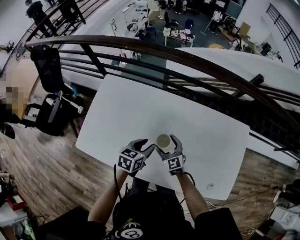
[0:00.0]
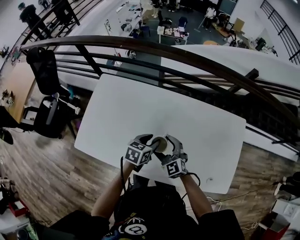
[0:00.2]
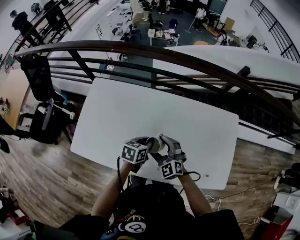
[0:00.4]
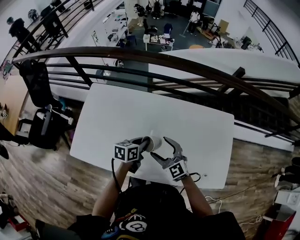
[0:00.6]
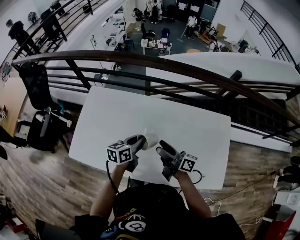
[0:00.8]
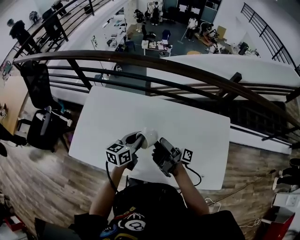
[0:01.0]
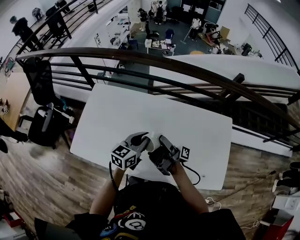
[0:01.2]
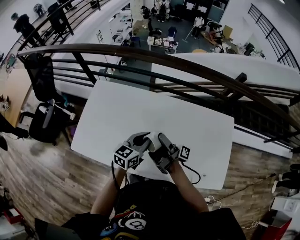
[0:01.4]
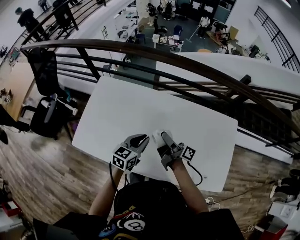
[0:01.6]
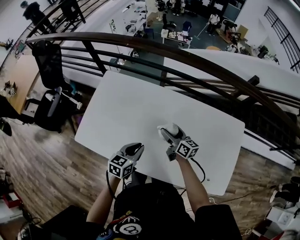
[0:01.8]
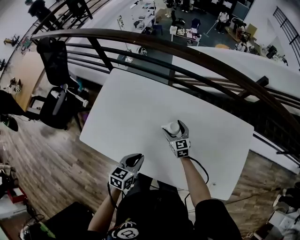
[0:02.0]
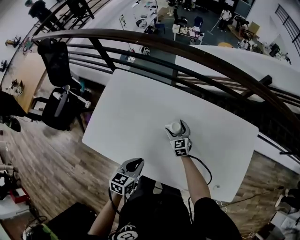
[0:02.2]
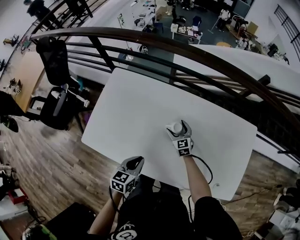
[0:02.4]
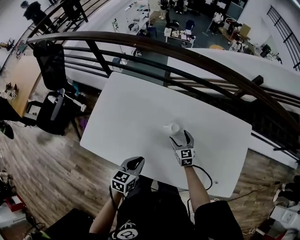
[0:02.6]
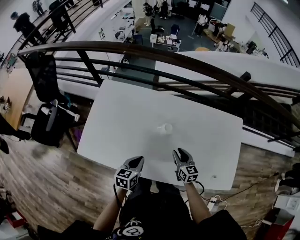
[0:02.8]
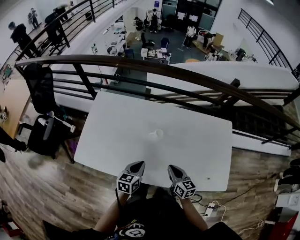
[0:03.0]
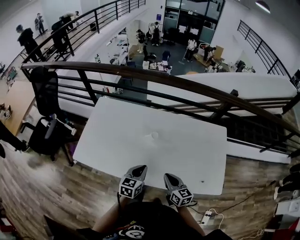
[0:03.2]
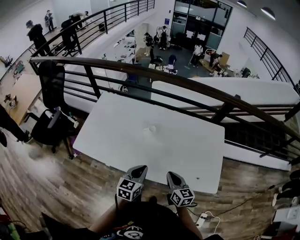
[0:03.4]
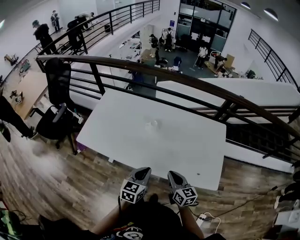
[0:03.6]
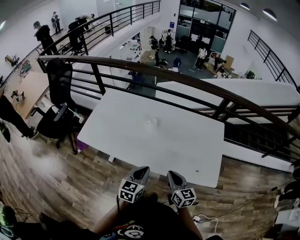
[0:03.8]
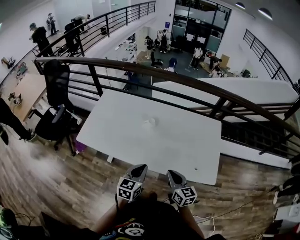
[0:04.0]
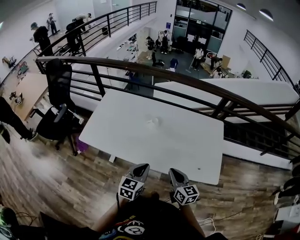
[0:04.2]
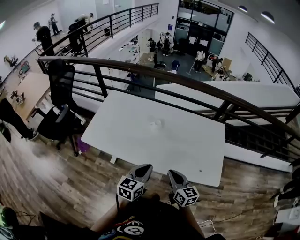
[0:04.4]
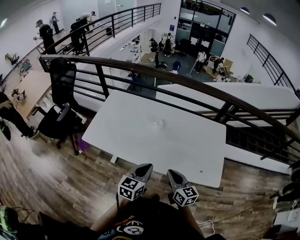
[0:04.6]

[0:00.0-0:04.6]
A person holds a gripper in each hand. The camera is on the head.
0.0 to 1.6 s: The right gripper moves upward, about 15 cm, and rotates around the line of its fingers by roughly 80 degrees, clockwise from behind; the left gripper moves upward, roughly 5 cm, and closes.
1.6 to 3.0 s: The left gripper travels backward and downward by some 10 cm, while the right gripper goes roughly 15 cm backward and downward, angles its fingers downward, by some 40 degrees, and closes.
3.0 to 4.6 s: The right gripper is displaced backward and upward by roughly 20 cm; the left gripper goes about 25 cm backward, upward and to the right.

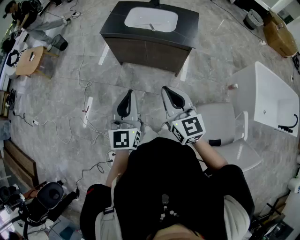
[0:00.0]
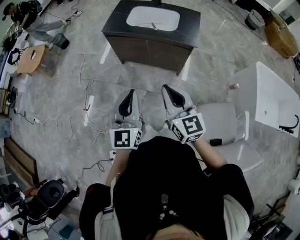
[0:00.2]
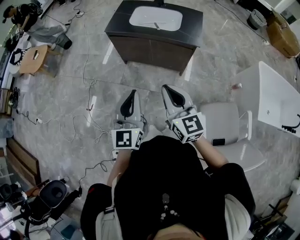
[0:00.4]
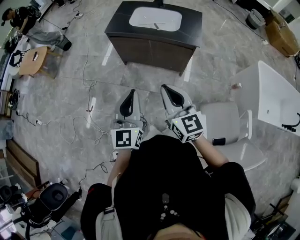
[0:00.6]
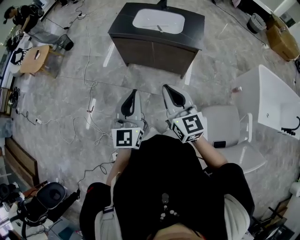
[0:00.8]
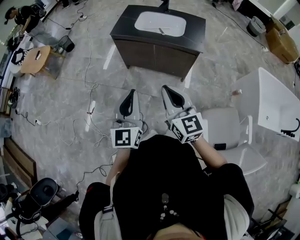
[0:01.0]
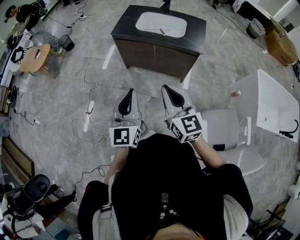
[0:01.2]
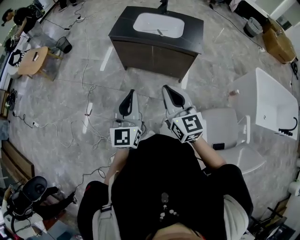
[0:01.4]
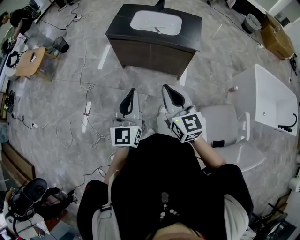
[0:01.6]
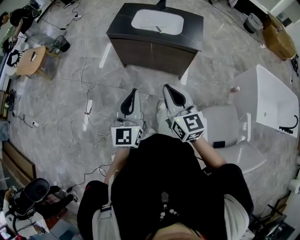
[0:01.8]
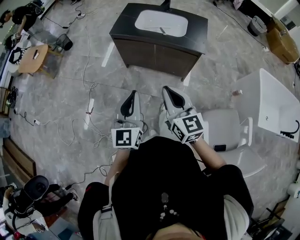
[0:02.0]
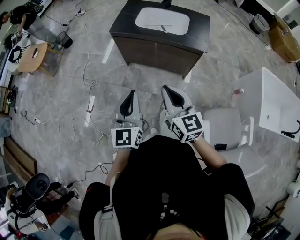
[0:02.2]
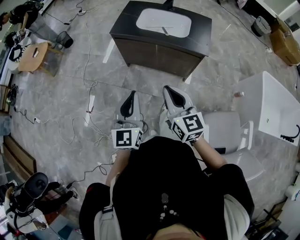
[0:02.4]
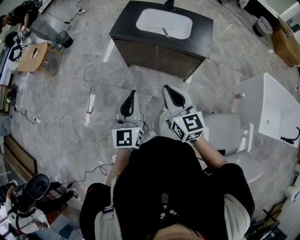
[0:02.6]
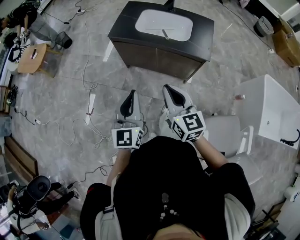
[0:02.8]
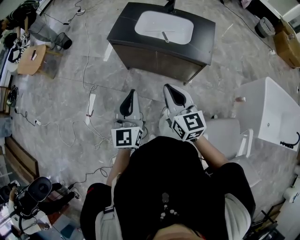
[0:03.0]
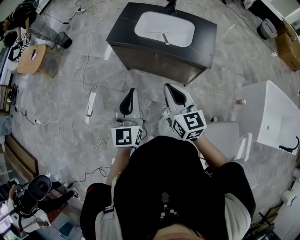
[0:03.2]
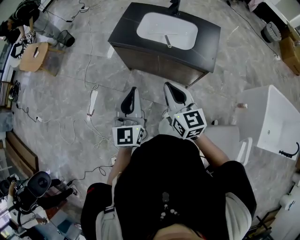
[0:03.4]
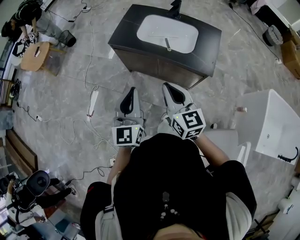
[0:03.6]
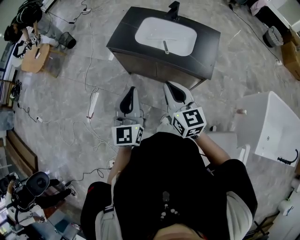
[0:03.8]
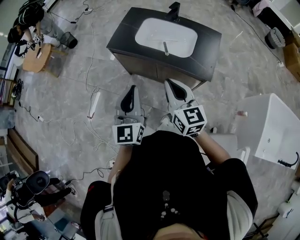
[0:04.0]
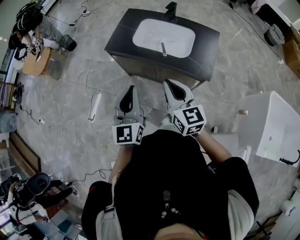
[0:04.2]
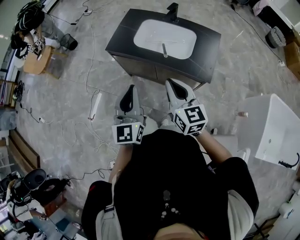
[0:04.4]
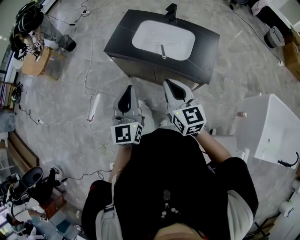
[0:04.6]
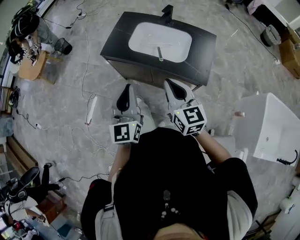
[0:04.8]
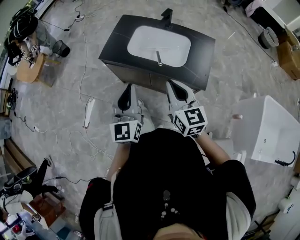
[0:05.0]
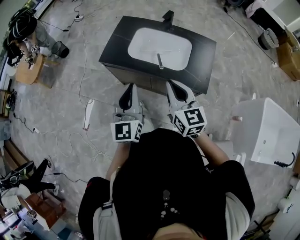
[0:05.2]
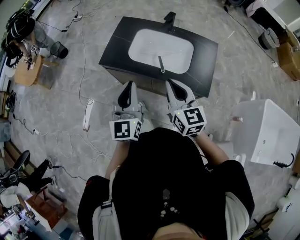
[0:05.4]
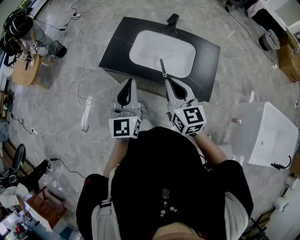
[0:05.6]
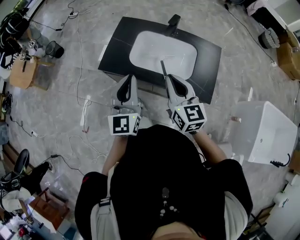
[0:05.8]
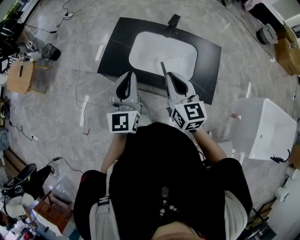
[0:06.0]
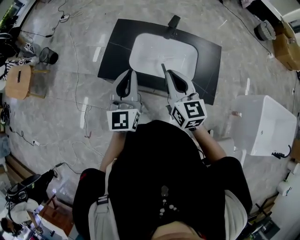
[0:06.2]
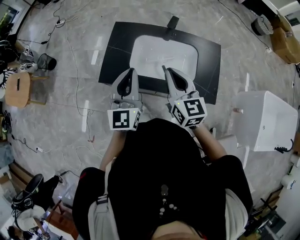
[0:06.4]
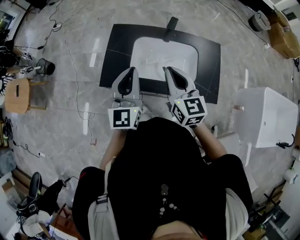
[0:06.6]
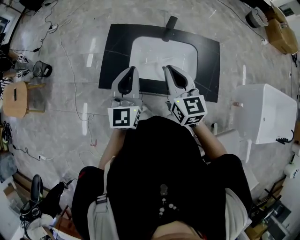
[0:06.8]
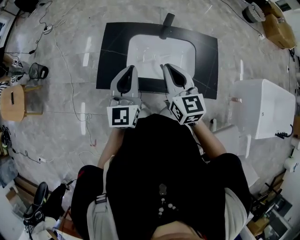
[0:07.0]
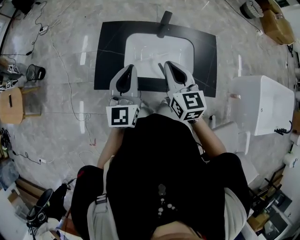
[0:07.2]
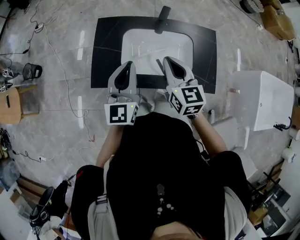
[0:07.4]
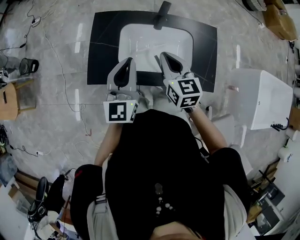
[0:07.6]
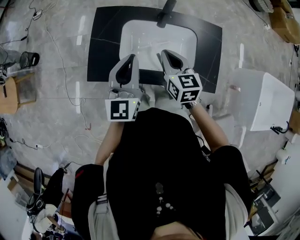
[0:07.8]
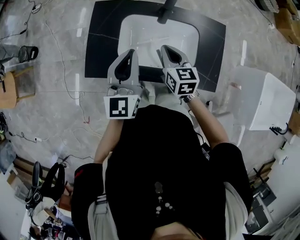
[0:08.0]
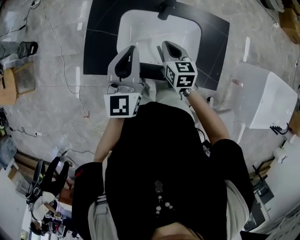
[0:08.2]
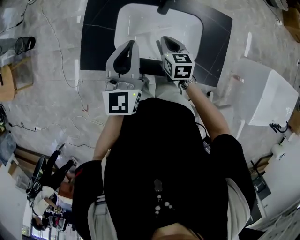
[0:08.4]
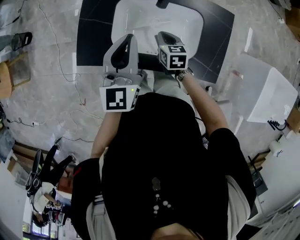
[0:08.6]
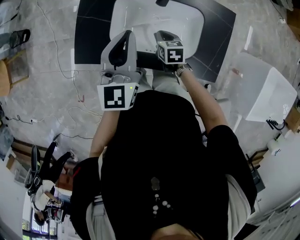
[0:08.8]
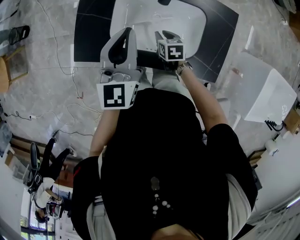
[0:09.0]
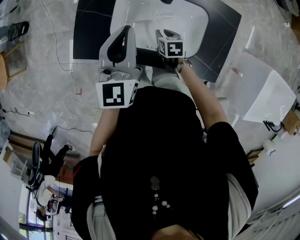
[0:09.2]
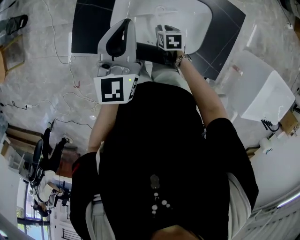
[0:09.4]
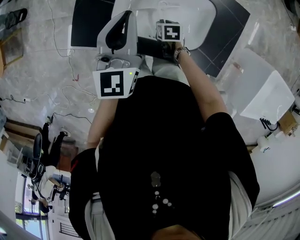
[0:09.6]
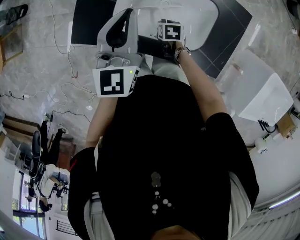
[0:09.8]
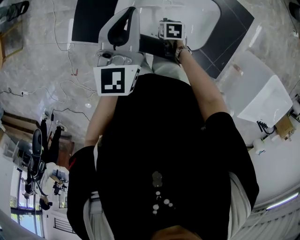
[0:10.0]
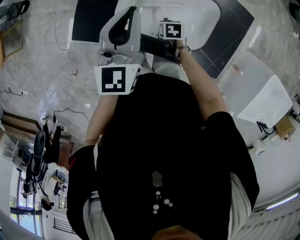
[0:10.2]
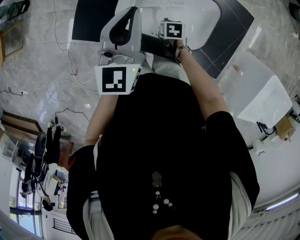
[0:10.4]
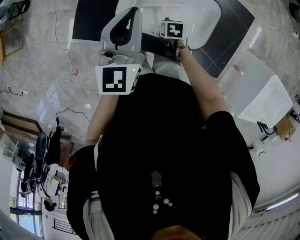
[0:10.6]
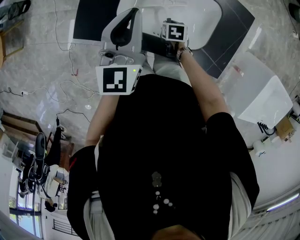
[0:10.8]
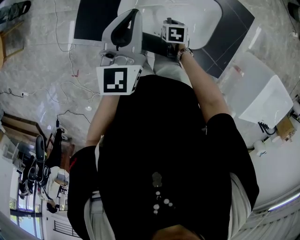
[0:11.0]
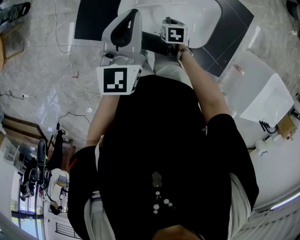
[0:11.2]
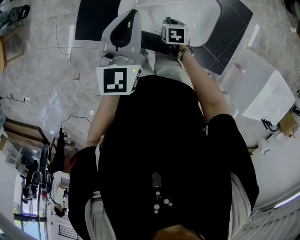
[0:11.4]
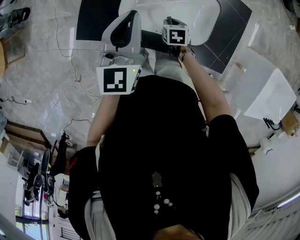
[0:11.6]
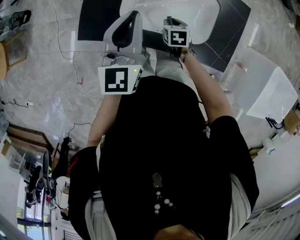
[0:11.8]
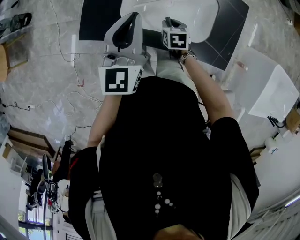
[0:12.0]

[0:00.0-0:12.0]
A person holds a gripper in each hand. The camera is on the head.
0.0 to 1.6 s: The grippers both shift to the left by about 5 cm.
1.6 to 3.0 s: The two grippers go some 15 cm forward.
3.0 to 4.4 s: Both grippers travel together forward and to the right, roughly 15 cm.
4.4 to 6.0 s: The two grippers go roughly 25 cm forward.
6.0 to 7.6 s: Both grippers travel together forward and downward, some 15 cm.
7.6 to 9.0 s: The right gripper is displaced downward by roughly 30 cm, tilts its fingers approximately 30 degrees downward, and opens up. The left gripper heads forward, covering roughly 5 cm.
9.0 to 10.4 s: The right gripper is displaced downward by about 10 cm.
10.4 to 12.0 s: The left gripper moves approximately 5 cm. The right gripper shifts about 10 cm upward.

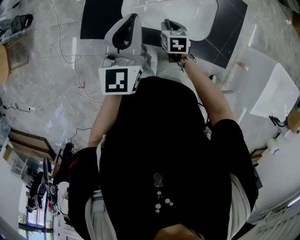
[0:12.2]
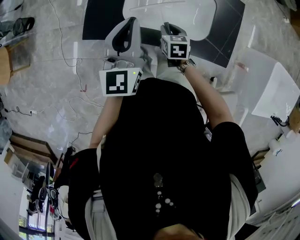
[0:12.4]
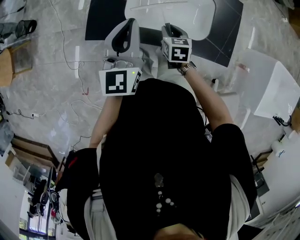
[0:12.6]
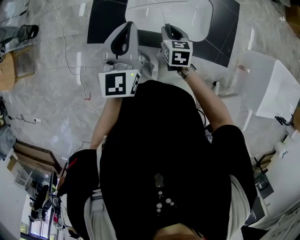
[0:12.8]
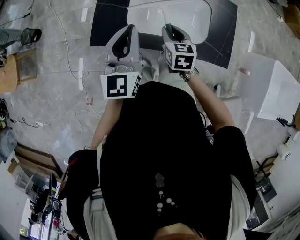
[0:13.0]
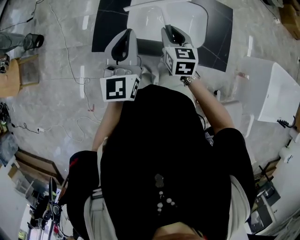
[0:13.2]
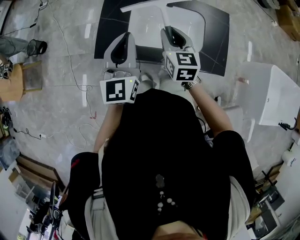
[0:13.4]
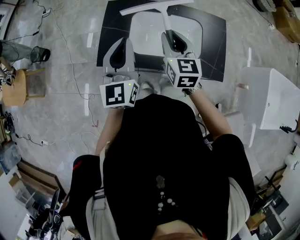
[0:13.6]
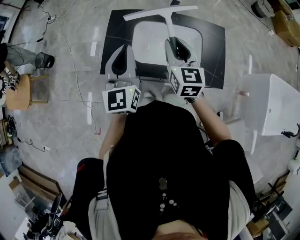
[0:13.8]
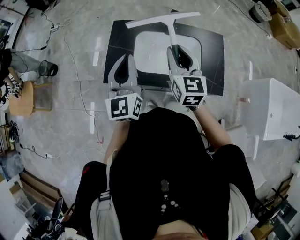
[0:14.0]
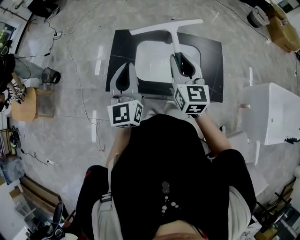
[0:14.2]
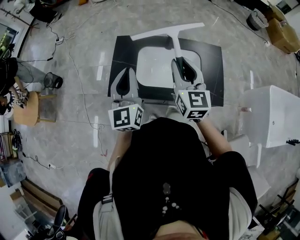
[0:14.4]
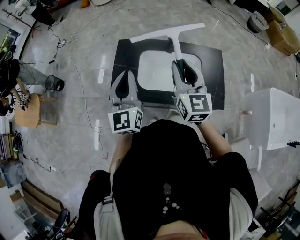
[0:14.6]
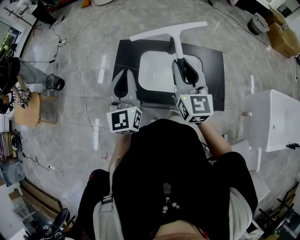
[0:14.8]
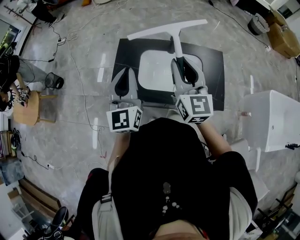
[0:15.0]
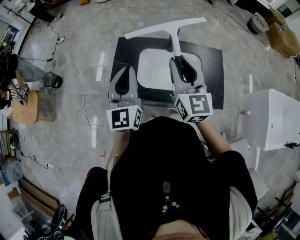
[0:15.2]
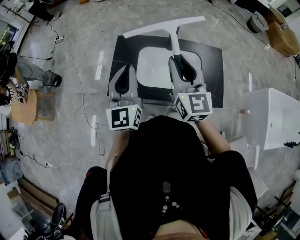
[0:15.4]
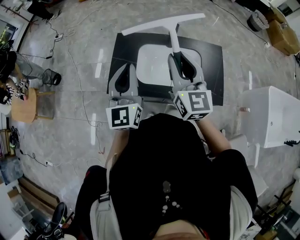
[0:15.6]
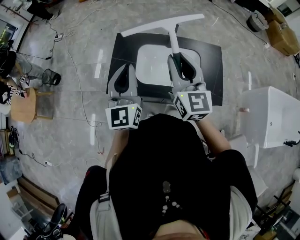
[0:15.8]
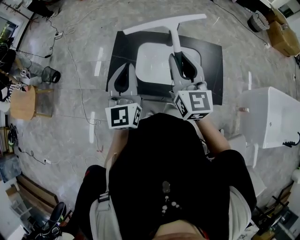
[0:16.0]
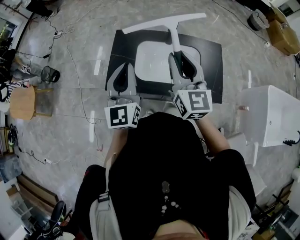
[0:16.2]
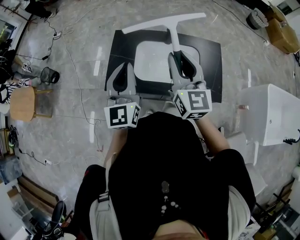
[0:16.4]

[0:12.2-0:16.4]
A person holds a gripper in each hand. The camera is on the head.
12.2 to 13.6 s: The right gripper heads upward, covering some 30 cm, and tilts its fingers roughly 40 degrees upward. The left gripper is displaced upward by about 10 cm.
13.6 to 15.0 s: The right gripper shifts some 15 cm upward. The left gripper travels upward by about 5 cm.
15.0 to 16.4 s: There are only small adjustments of the grippers.

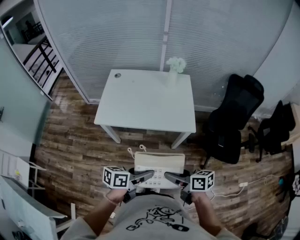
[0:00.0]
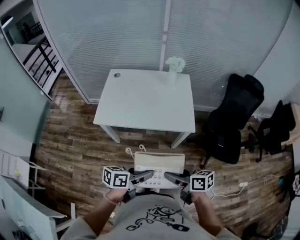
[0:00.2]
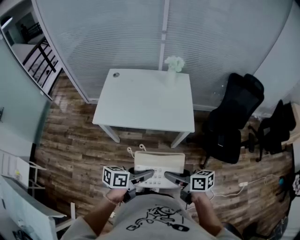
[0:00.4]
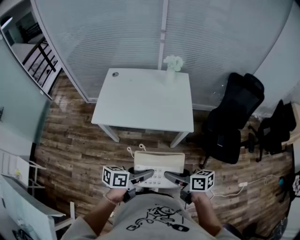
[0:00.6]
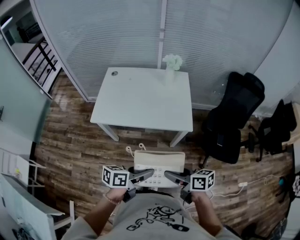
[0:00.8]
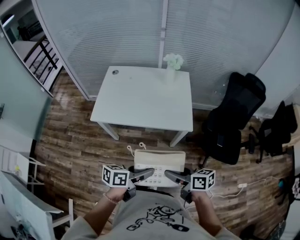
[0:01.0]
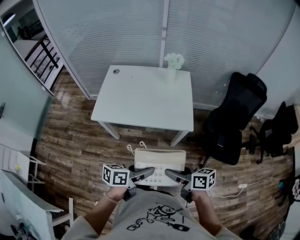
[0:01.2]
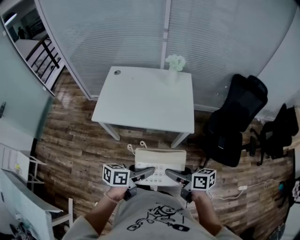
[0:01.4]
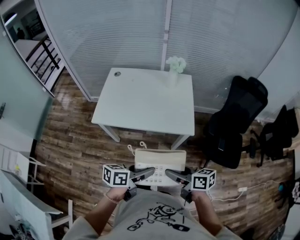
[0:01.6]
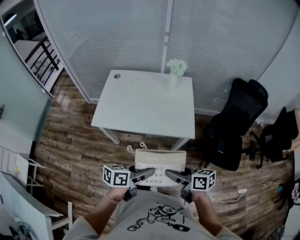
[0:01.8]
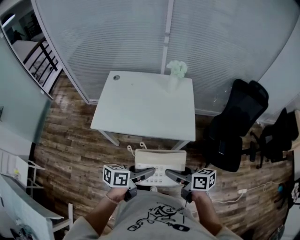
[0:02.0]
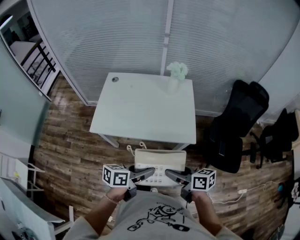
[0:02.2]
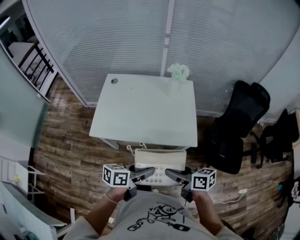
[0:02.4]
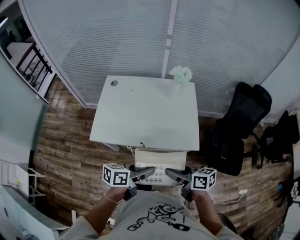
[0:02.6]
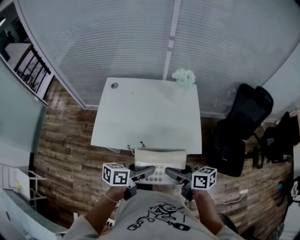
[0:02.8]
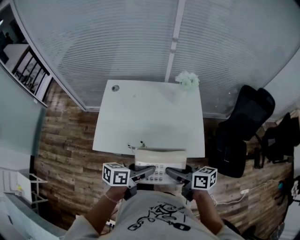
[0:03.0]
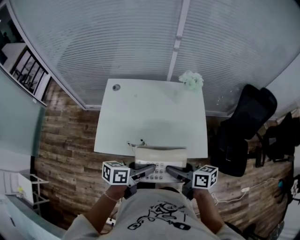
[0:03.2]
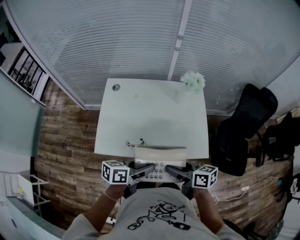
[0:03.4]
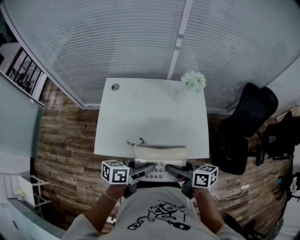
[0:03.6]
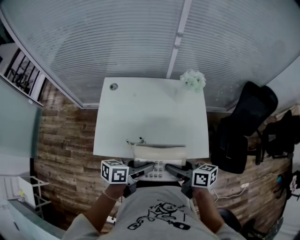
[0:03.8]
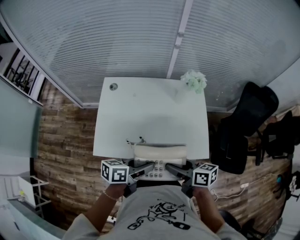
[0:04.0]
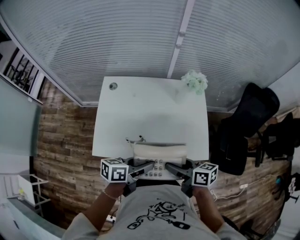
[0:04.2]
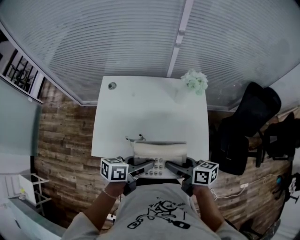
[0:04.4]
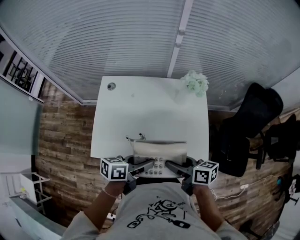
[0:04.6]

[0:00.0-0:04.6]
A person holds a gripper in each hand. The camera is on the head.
0.0 to 1.6 s: The left gripper moves about 5 cm; the right gripper shifts by approximately 5 cm.
1.6 to 3.0 s: Both grippers move forward and to the left, approximately 20 cm.
3.0 to 4.6 s: The grippers both shift forward by about 10 cm.
